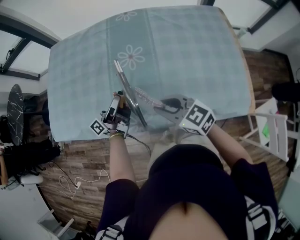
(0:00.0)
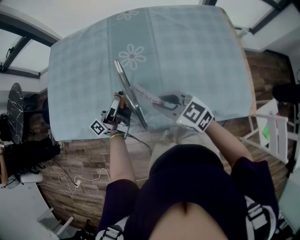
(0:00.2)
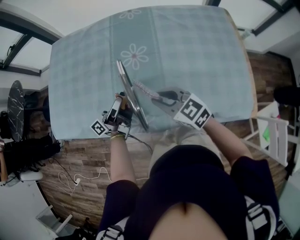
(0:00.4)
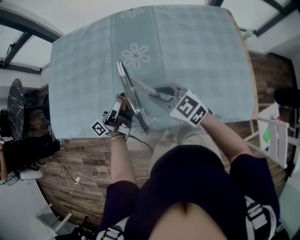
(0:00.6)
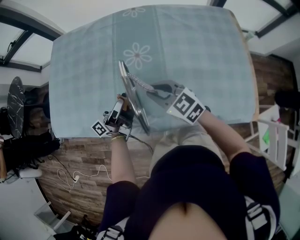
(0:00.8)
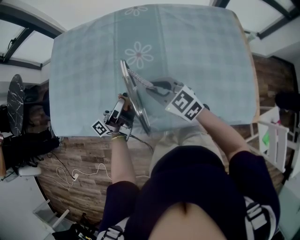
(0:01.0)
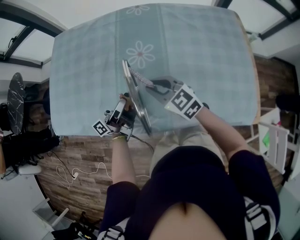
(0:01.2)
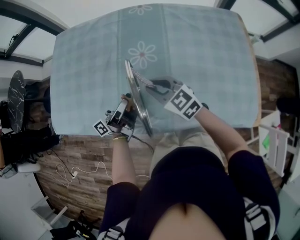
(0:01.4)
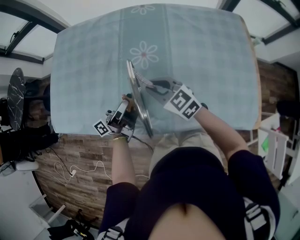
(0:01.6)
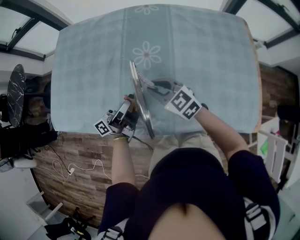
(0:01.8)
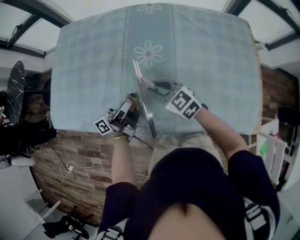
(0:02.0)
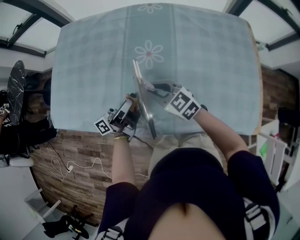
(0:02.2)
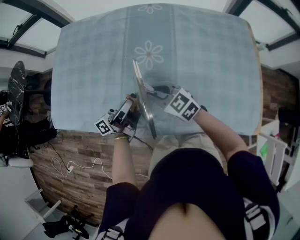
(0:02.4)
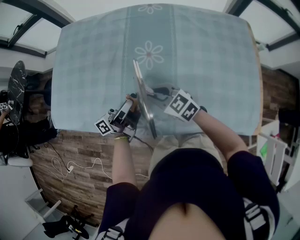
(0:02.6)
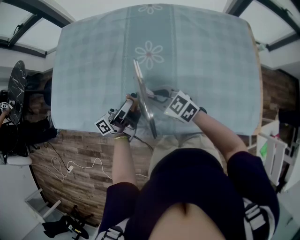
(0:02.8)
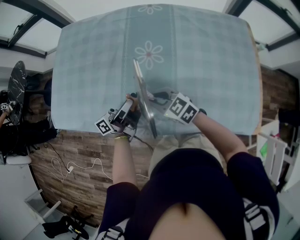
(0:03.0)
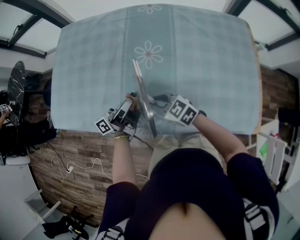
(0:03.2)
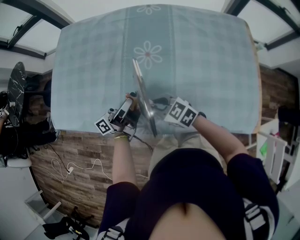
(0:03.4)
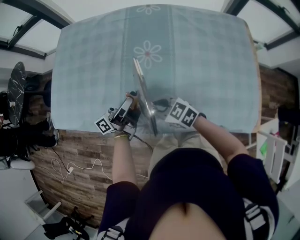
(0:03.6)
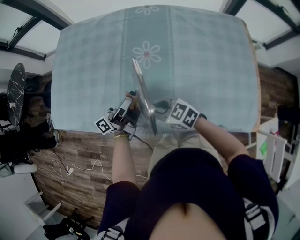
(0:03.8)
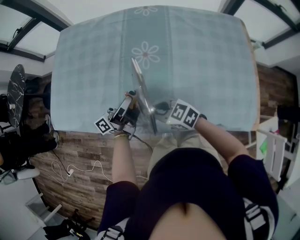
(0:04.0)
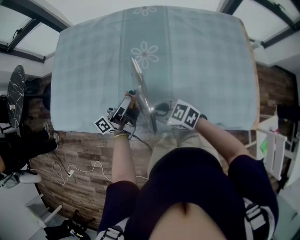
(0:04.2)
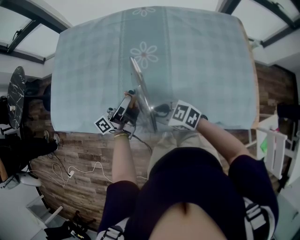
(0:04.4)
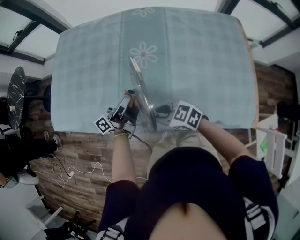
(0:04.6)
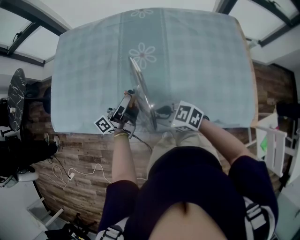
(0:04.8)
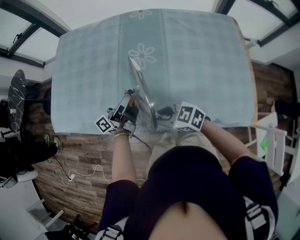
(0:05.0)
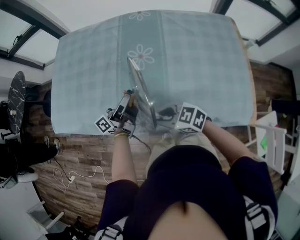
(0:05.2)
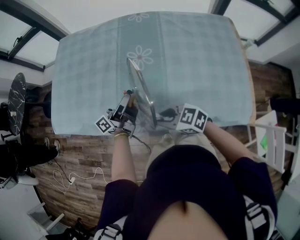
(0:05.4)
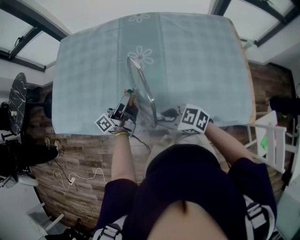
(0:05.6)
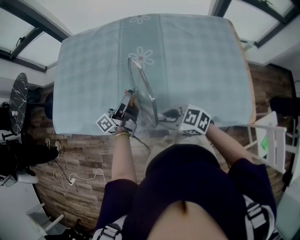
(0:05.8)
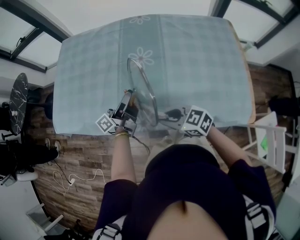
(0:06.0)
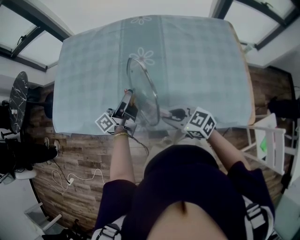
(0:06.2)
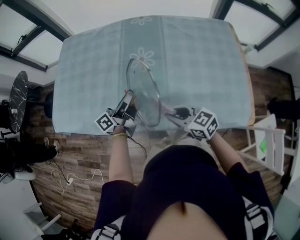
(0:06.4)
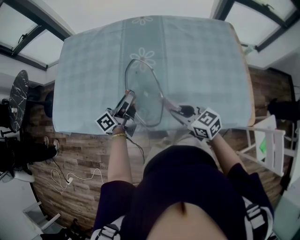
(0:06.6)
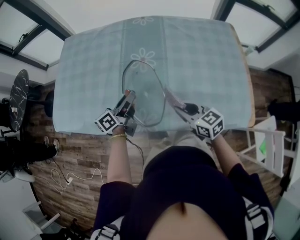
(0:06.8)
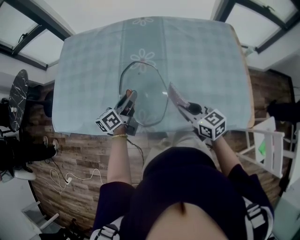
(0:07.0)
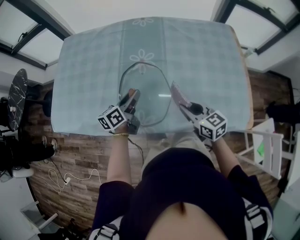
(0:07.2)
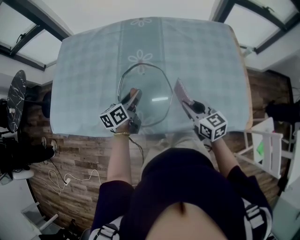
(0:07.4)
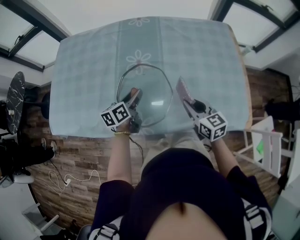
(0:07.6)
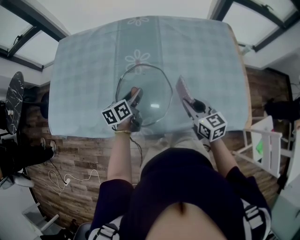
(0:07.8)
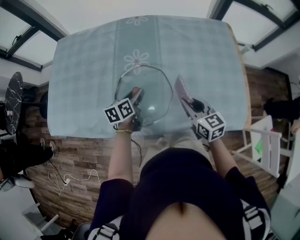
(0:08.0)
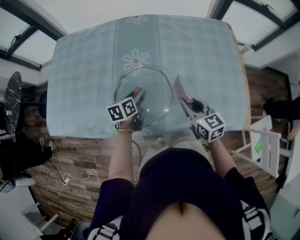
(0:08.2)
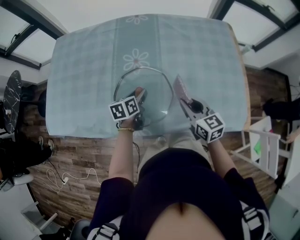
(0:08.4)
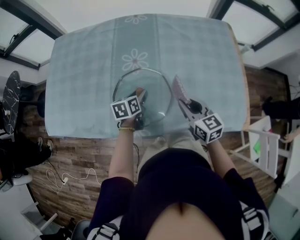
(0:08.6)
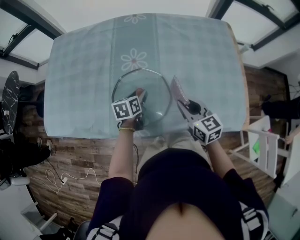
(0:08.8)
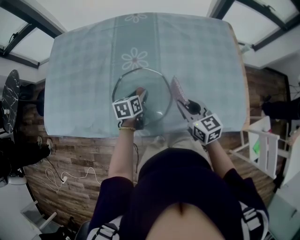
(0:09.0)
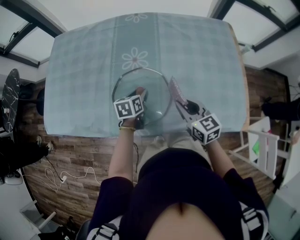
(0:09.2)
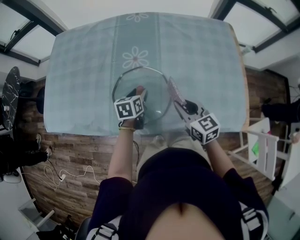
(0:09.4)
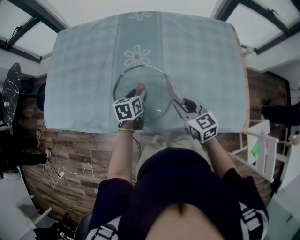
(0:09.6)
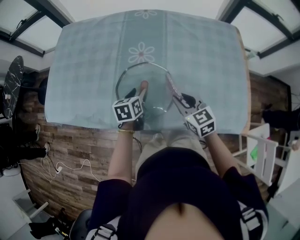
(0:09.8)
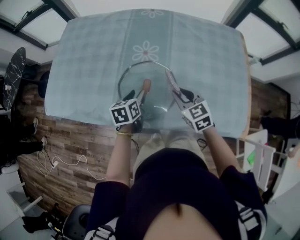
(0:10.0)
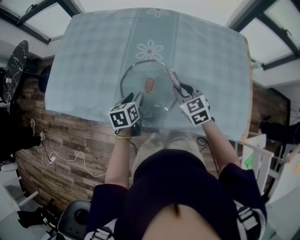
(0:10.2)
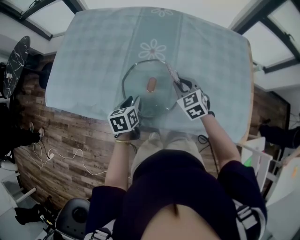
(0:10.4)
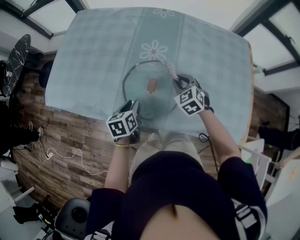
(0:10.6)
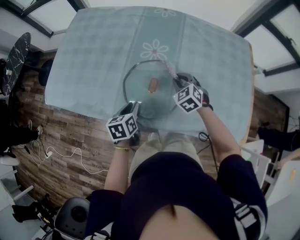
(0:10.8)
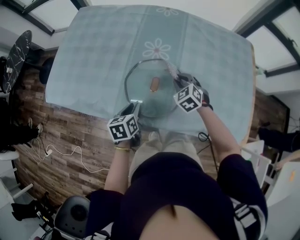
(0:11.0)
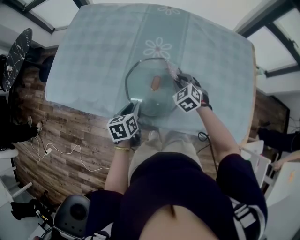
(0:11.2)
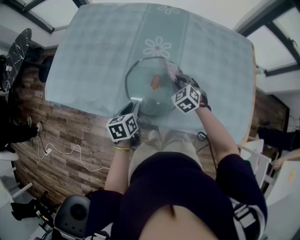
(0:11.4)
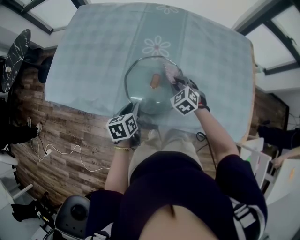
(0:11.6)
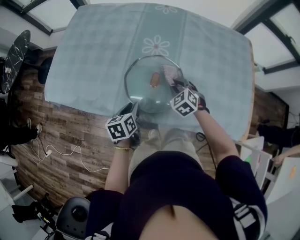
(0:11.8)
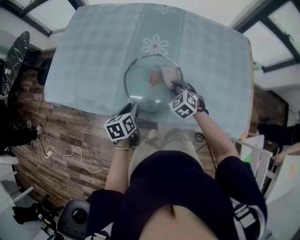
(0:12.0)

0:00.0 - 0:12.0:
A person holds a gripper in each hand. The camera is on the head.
0:00.0 - 0:01.6: The right gripper goes about 10 cm forward.
0:01.6 - 0:03.0: The right gripper shifts by approximately 5 cm.
0:03.0 - 0:04.4: The right gripper travels backward by some 10 cm.
0:04.4 - 0:06.0: The right gripper shifts about 5 cm backward.
0:06.0 - 0:07.6: The right gripper travels to the right and forward by about 15 cm, and rotates some 40 degrees. The left gripper goes roughly 5 cm downward, and angles its fingers downward, by some 40 degrees.
0:07.6 - 0:09.0: The left gripper is displaced downward by approximately 5 cm, and swivels about 20 degrees.
0:09.0 - 0:10.4: The left gripper travels to the left and backward by approximately 10 cm. Meanwhile the right gripper is displaced forward and to the left by approximately 10 cm, and swivels approximately 40 degrees.
0:10.4 - 0:12.0: The left gripper travels backward by roughly 5 cm. The right gripper heads downward, covering some 5 cm.

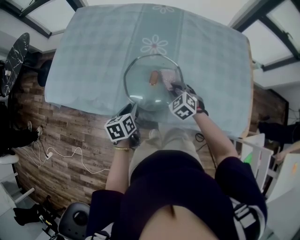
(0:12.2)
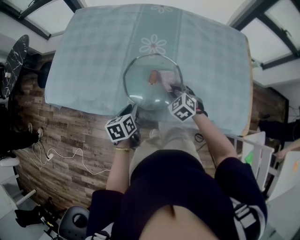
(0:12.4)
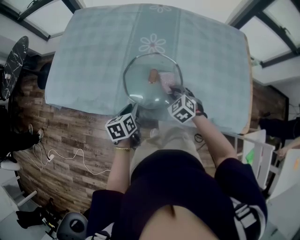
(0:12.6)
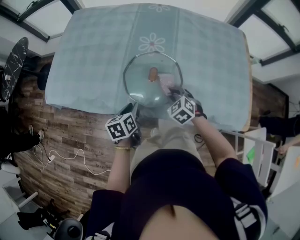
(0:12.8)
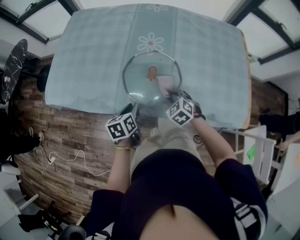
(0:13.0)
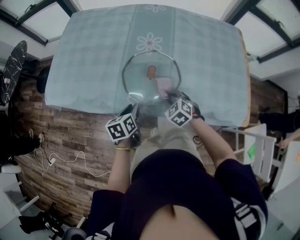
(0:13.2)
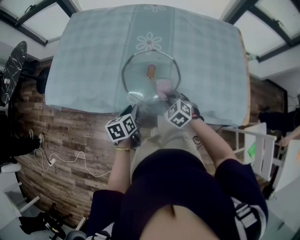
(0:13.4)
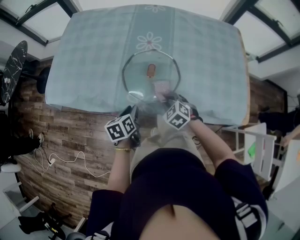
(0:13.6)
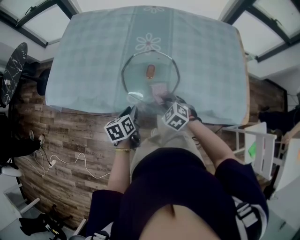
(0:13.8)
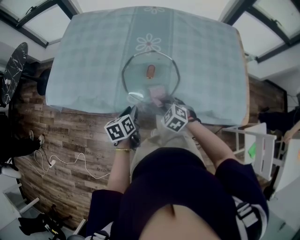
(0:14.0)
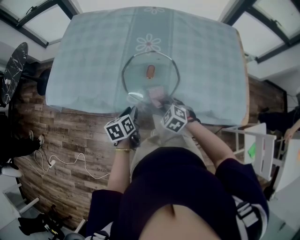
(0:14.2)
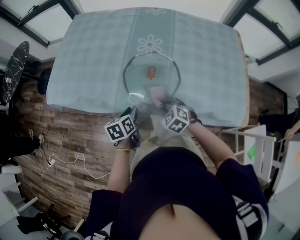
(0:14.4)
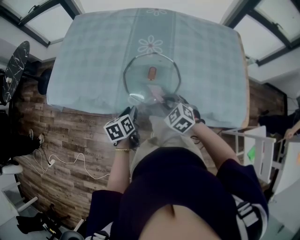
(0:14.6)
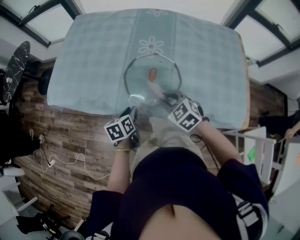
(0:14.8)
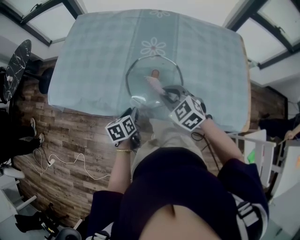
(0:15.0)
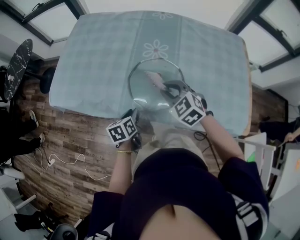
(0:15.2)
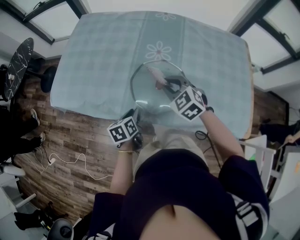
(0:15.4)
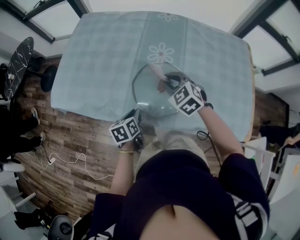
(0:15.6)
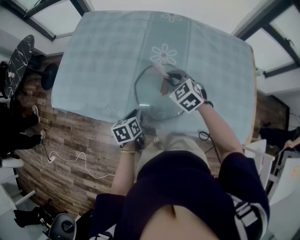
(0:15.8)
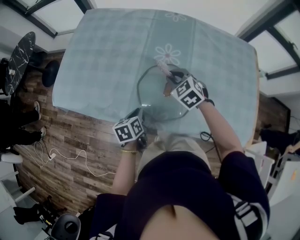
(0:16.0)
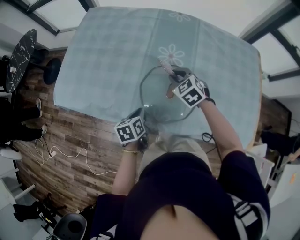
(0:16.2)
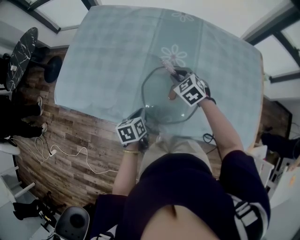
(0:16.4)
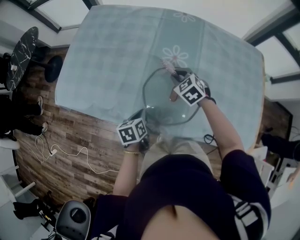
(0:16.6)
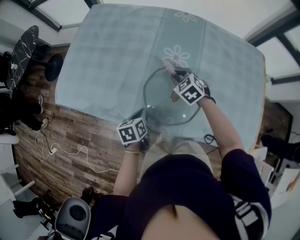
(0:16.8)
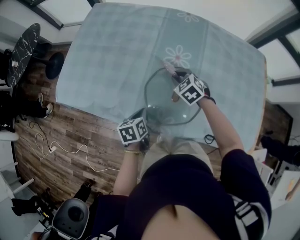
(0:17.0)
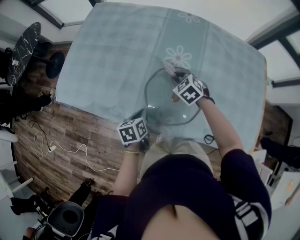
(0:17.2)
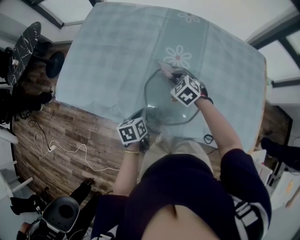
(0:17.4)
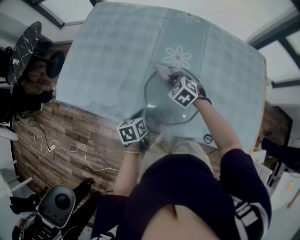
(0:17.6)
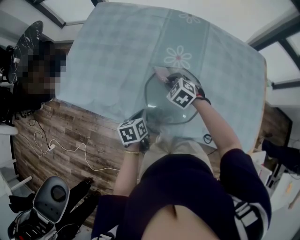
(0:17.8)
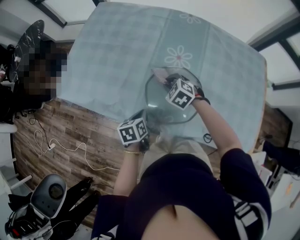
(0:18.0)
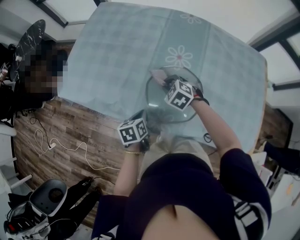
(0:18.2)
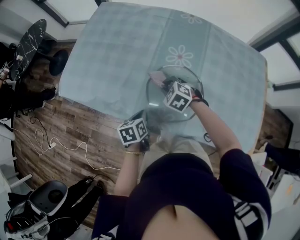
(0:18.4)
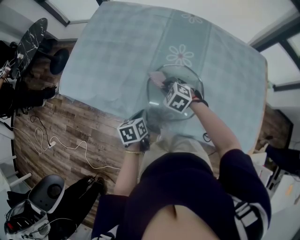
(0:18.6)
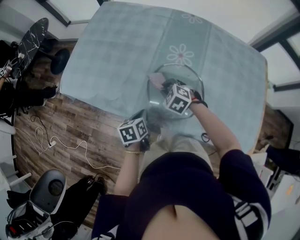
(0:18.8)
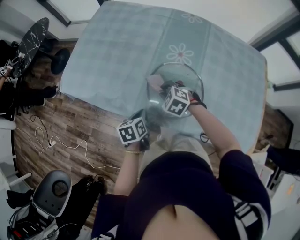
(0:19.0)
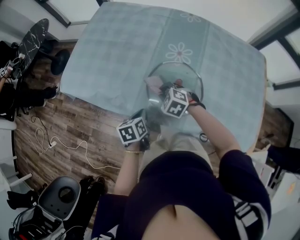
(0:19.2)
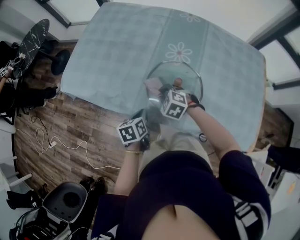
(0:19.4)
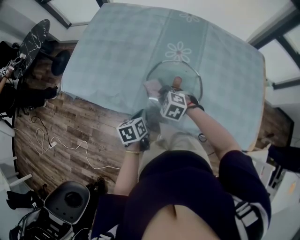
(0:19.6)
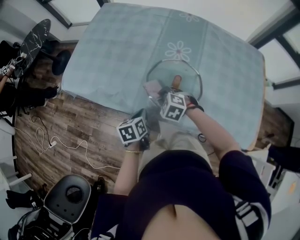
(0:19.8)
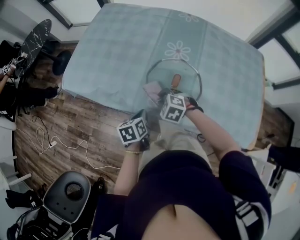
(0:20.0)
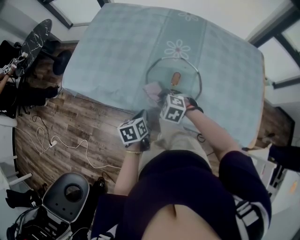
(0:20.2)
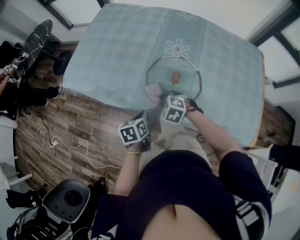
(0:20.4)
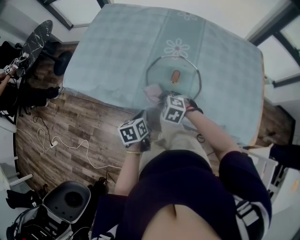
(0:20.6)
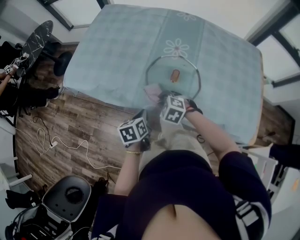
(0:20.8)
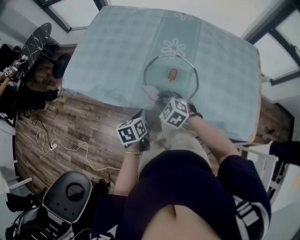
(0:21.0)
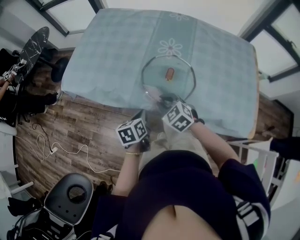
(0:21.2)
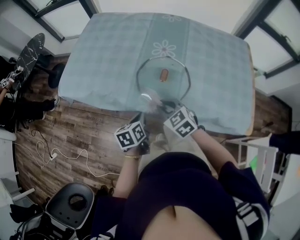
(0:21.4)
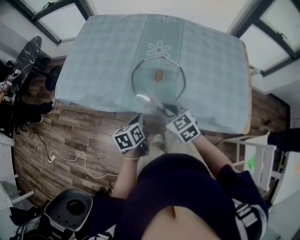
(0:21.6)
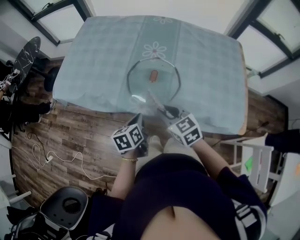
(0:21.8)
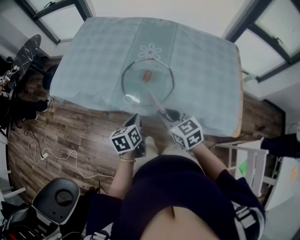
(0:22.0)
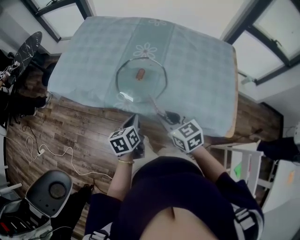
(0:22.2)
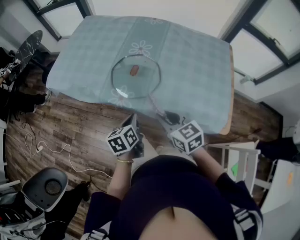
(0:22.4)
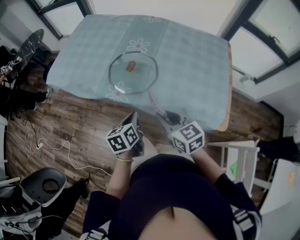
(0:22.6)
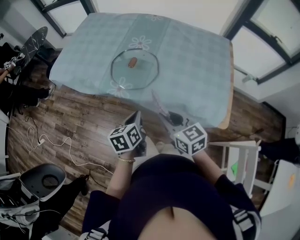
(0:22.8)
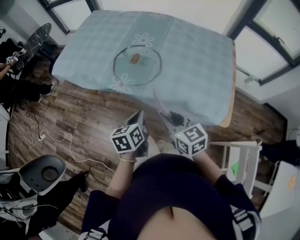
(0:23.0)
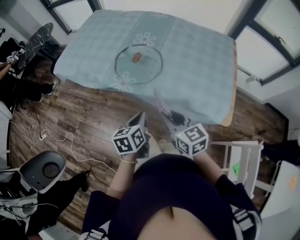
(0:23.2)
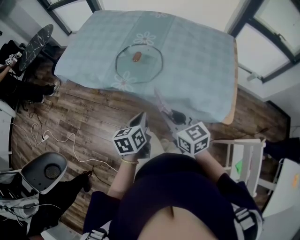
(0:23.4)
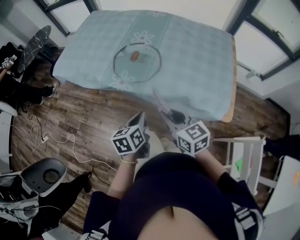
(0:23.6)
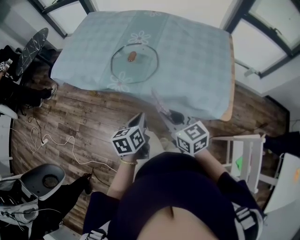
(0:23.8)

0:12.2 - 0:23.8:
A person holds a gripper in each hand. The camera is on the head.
0:12.2 - 0:13.6: The right gripper goes approximately 10 cm backward.
0:13.6 - 0:15.0: The right gripper heads upward, covering approximately 15 cm.
0:15.0 - 0:16.6: The right gripper shifts some 20 cm forward. Meanwhile the left gripper moves forward, some 5 cm, and closes its fingers.
0:16.6 - 0:18.0: The right gripper is displaced to the left by approximately 5 cm.
0:18.0 - 0:19.4: The right gripper shifts some 10 cm backward and to the left.
0:19.4 - 0:21.0: Both grippers travel together backward, approximately 5 cm.
0:21.0 - 0:22.4: The two grippers go roughly 25 cm to the right, backward and upward. The right gripper changes its angle by about 40 degrees.
0:22.4 - 0:23.8: The two grippers go some 10 cm backward.
